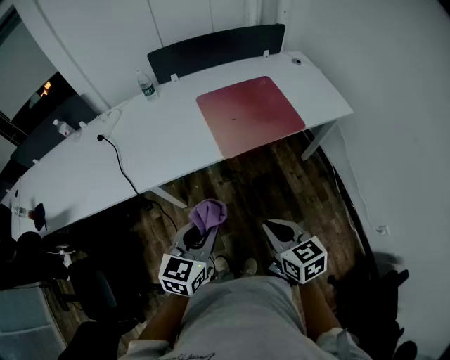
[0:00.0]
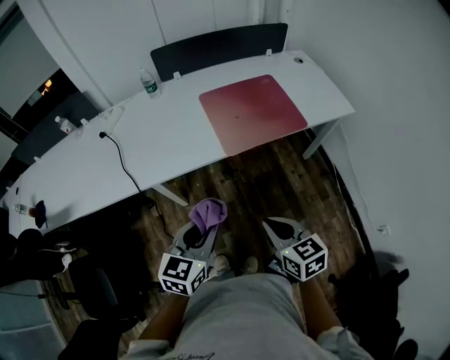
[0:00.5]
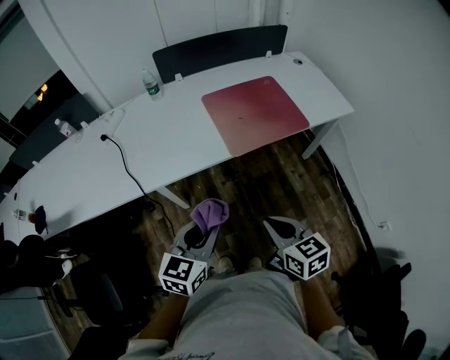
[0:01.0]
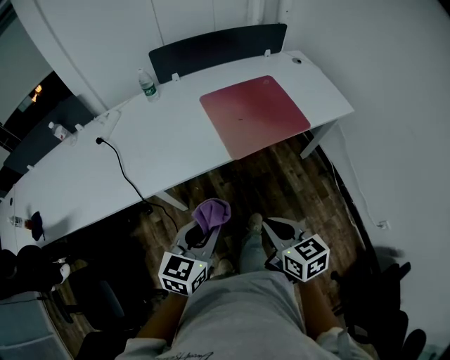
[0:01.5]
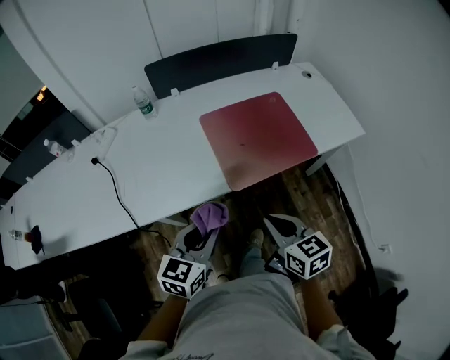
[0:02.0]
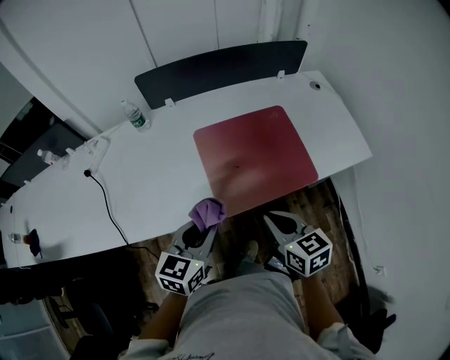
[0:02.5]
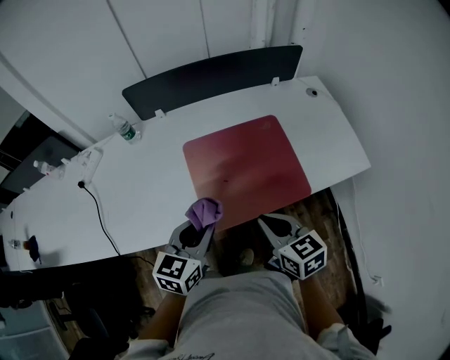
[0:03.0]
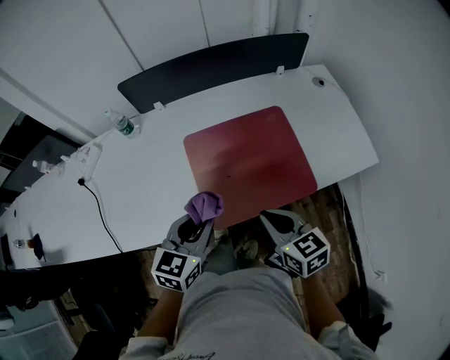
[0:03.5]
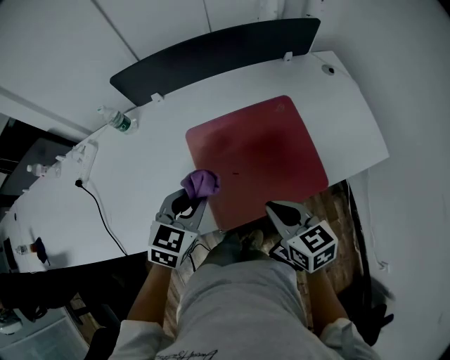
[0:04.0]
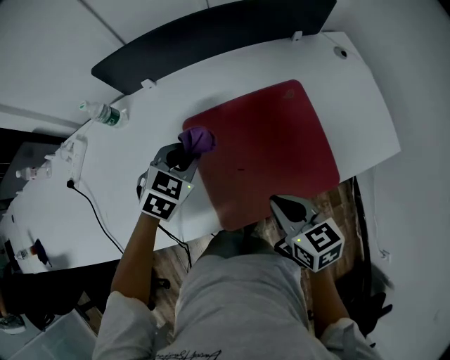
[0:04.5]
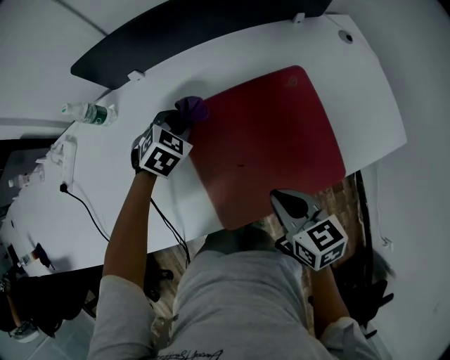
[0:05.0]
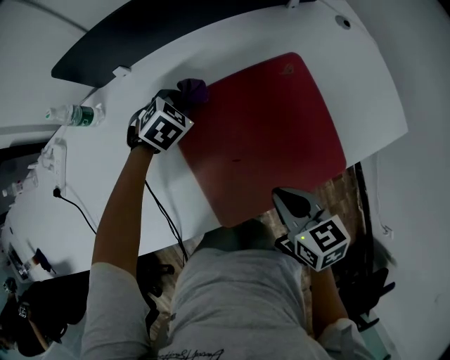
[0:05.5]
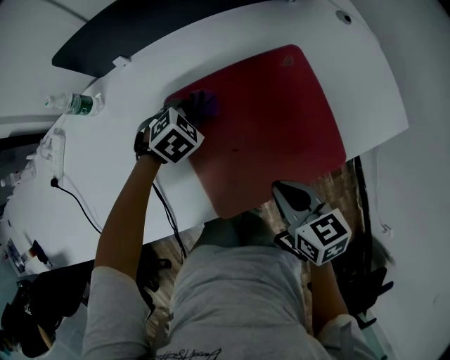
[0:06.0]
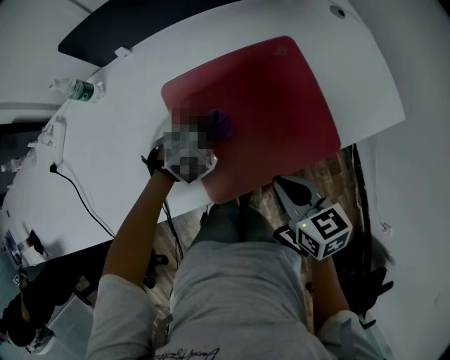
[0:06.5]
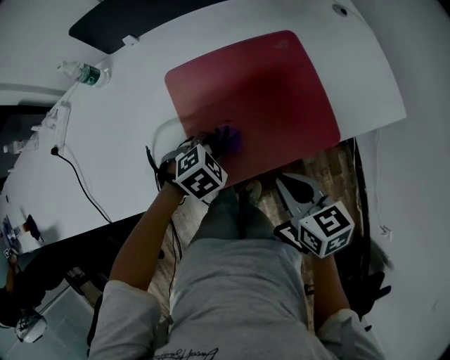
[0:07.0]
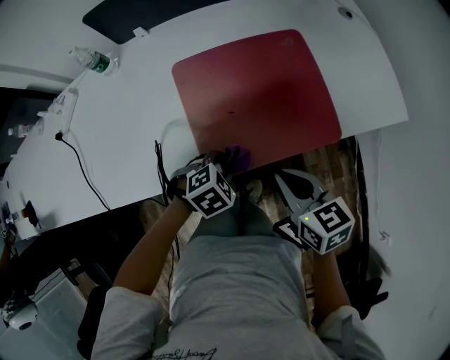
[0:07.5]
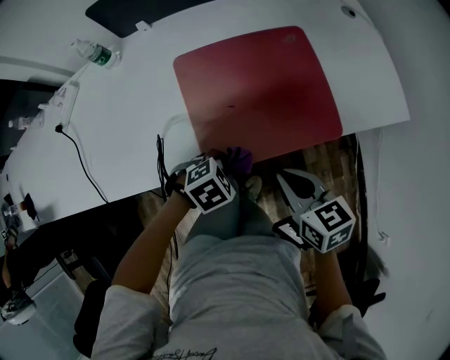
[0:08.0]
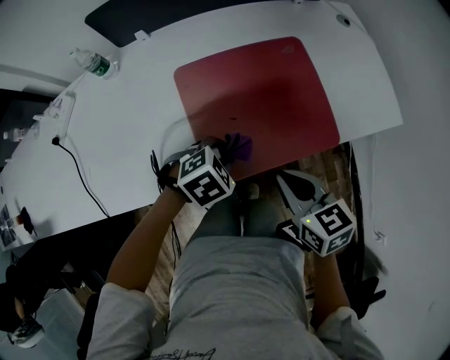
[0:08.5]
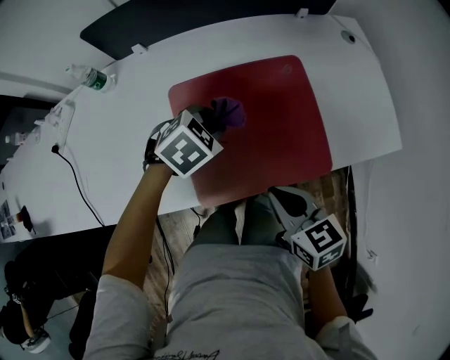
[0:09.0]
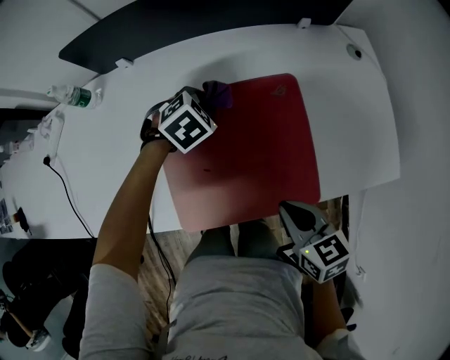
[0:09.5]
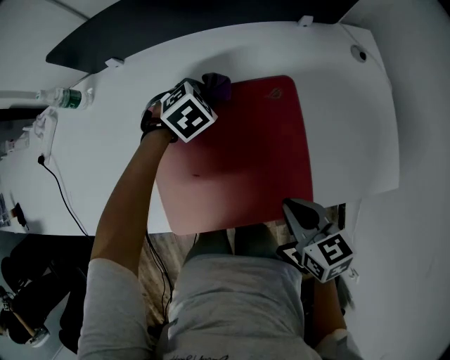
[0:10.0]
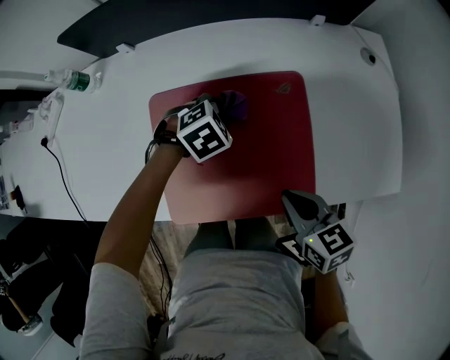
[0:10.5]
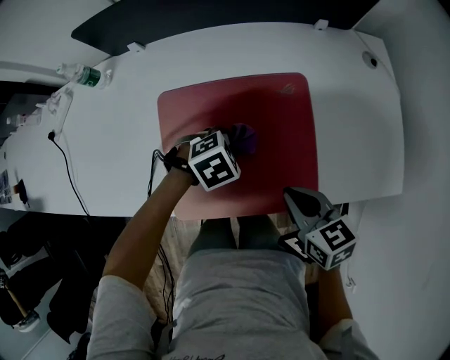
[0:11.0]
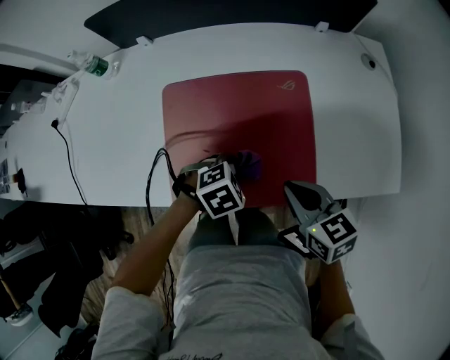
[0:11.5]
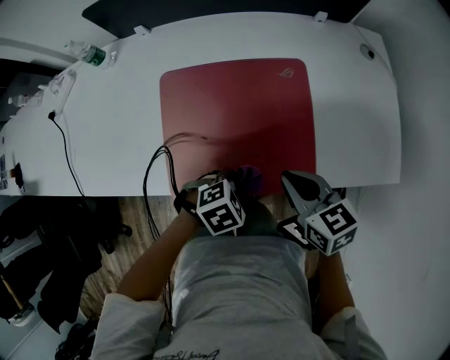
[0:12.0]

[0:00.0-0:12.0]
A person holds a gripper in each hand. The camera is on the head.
0:00.0 to 0:02.0: The two grippers go some 15 cm forward.
0:02.0 to 0:04.0: The grippers both shift forward by some 25 cm.
0:04.0 to 0:06.0: The right gripper goes approximately 5 cm downward. The left gripper goes about 25 cm forward and downward, and turns by some 40 degrees.
0:06.0 to 0:08.0: The left gripper travels backward and to the right by approximately 30 cm, while the right gripper heads backward, covering some 10 cm.
0:08.0 to 0:10.0: The left gripper moves approximately 10 cm upward and comes back; the right gripper moves roughly 20 cm.
0:10.0 to 0:12.0: The left gripper ends up approximately 35 cm from where it was.

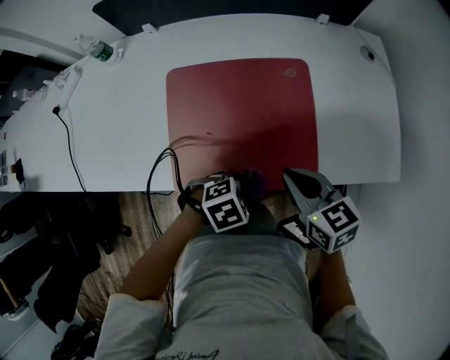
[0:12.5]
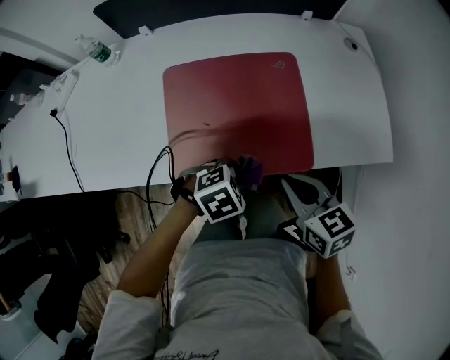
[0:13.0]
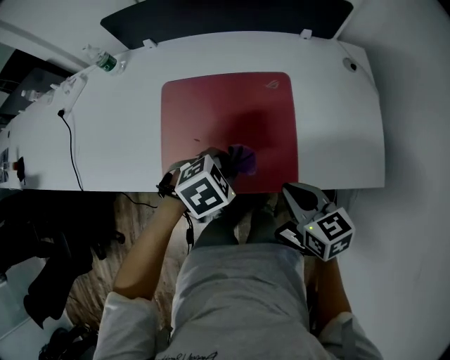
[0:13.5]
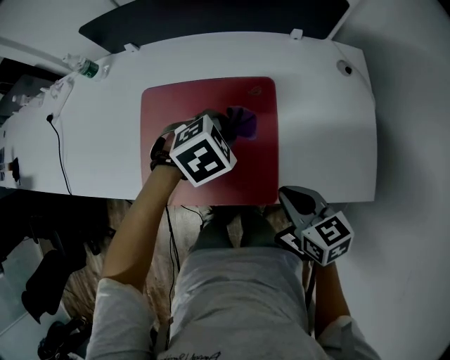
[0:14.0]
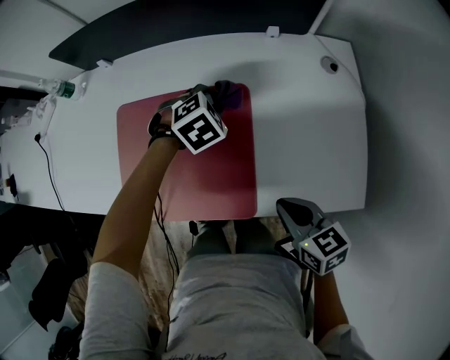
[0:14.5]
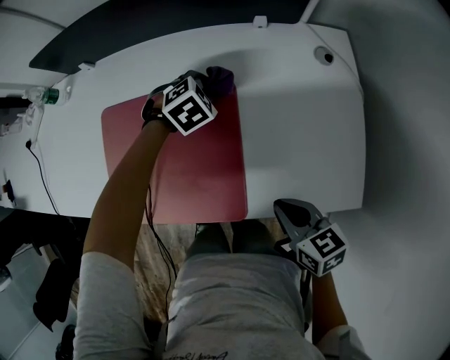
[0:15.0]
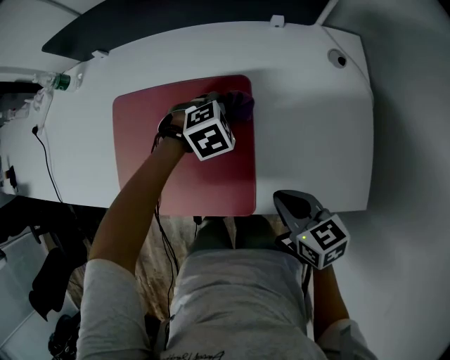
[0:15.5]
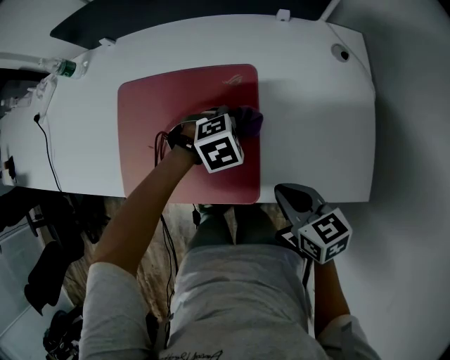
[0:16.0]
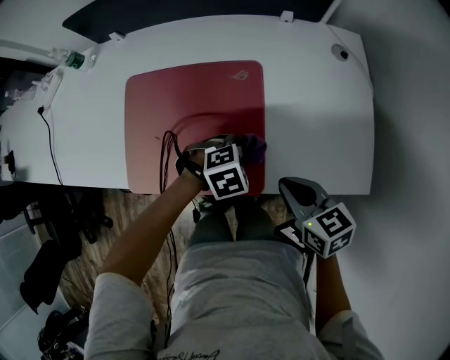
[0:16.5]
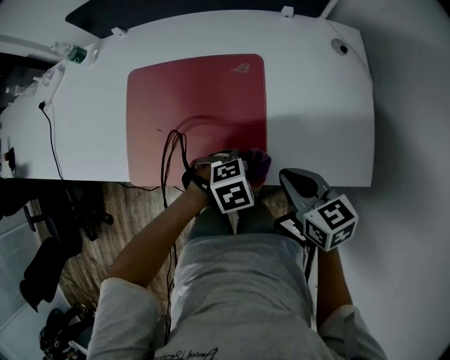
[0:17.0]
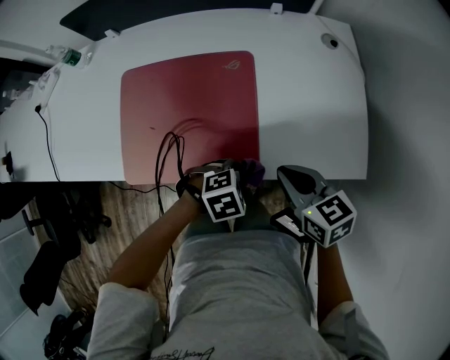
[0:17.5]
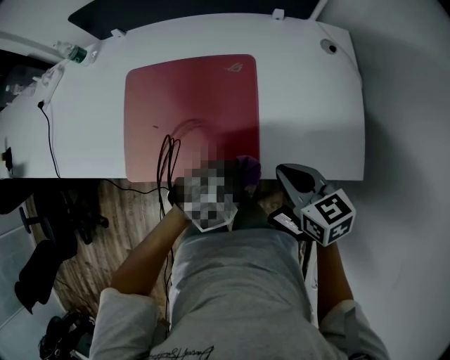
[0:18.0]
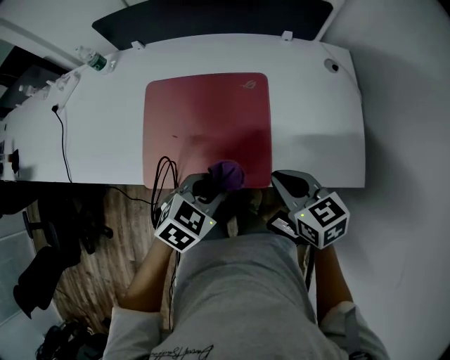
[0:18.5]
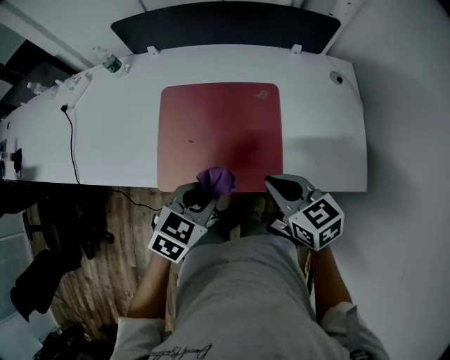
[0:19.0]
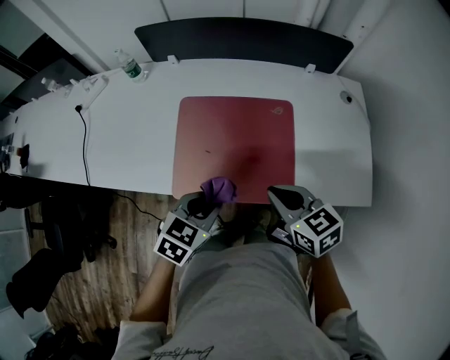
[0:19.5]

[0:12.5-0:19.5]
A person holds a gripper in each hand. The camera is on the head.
0:12.5 to 0:14.5: The right gripper changes place by about 20 cm; the left gripper moves some 35 cm, and changes its angle by about 30 degrees.
0:14.5 to 0:16.0: The left gripper heads backward and downward, covering about 10 cm.
0:16.0 to 0:17.5: The left gripper moves approximately 20 cm.
0:17.5 to 0:19.5: The left gripper changes place by approximately 25 cm, and rotates roughly 50 degrees, while the right gripper ends up approximately 20 cm from where it was.

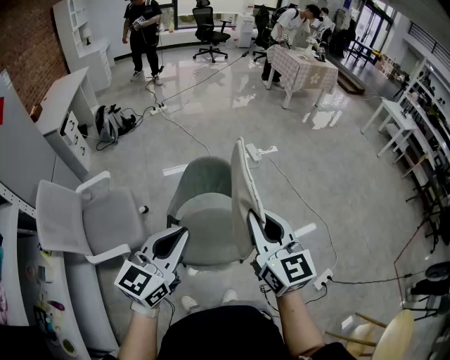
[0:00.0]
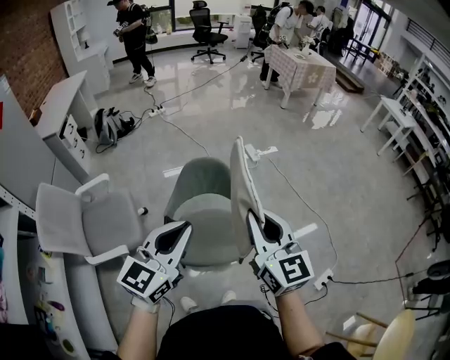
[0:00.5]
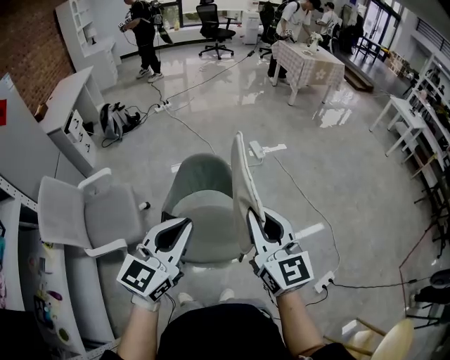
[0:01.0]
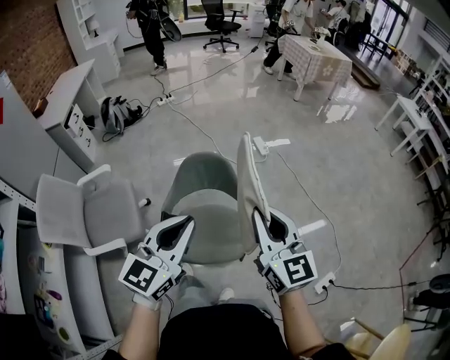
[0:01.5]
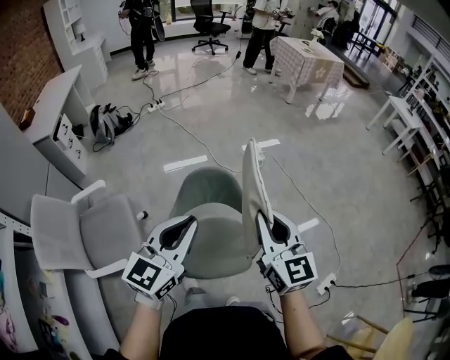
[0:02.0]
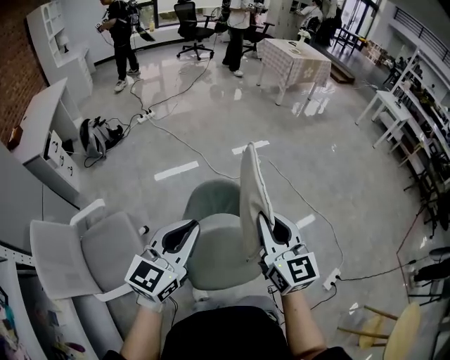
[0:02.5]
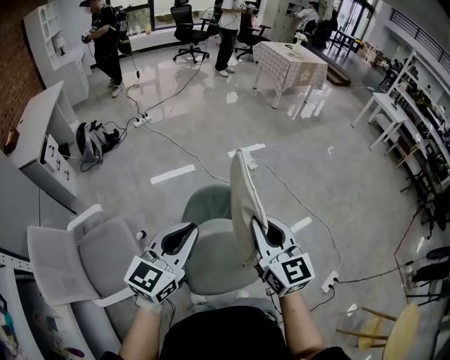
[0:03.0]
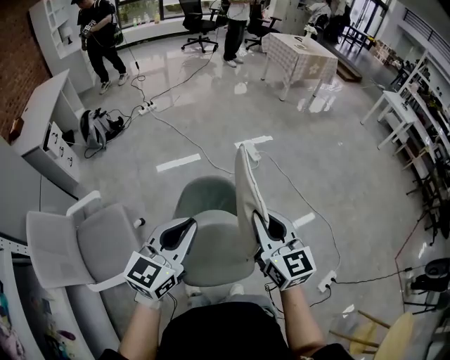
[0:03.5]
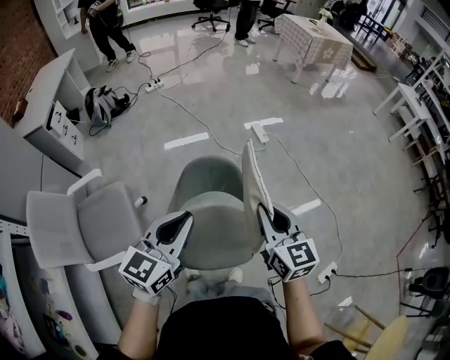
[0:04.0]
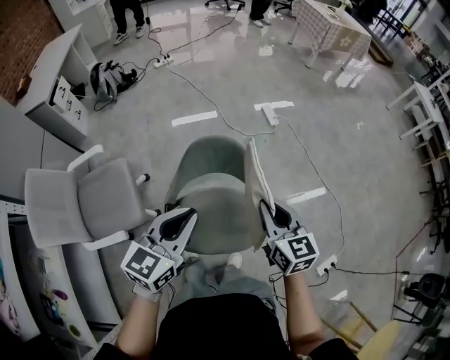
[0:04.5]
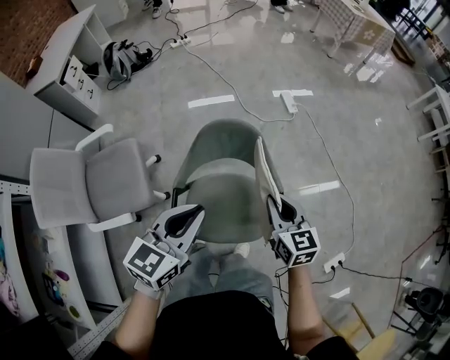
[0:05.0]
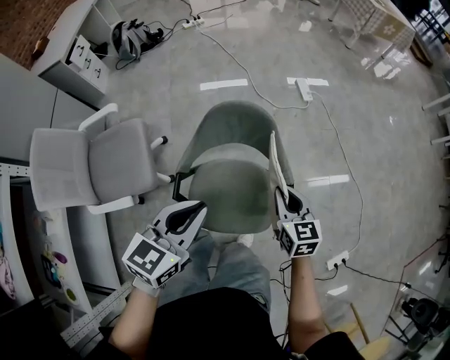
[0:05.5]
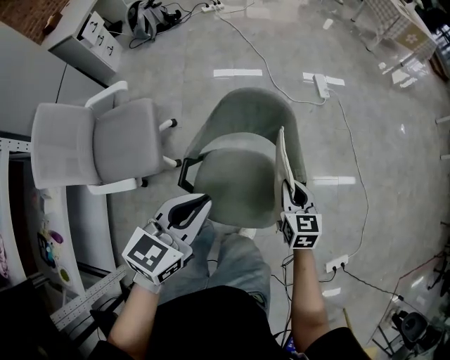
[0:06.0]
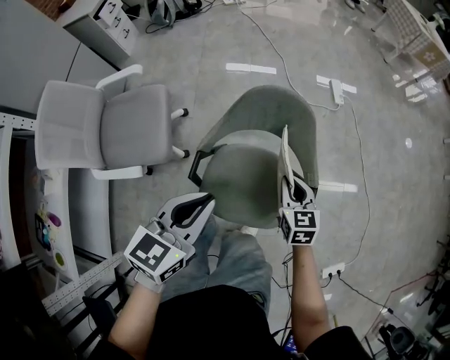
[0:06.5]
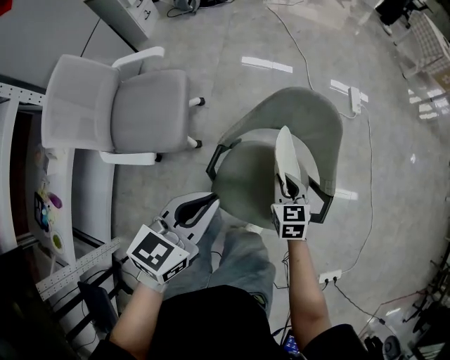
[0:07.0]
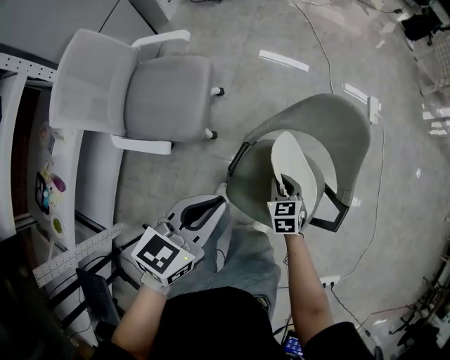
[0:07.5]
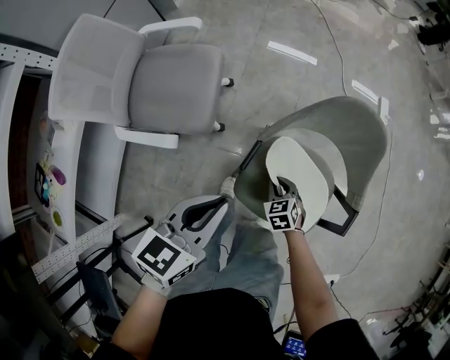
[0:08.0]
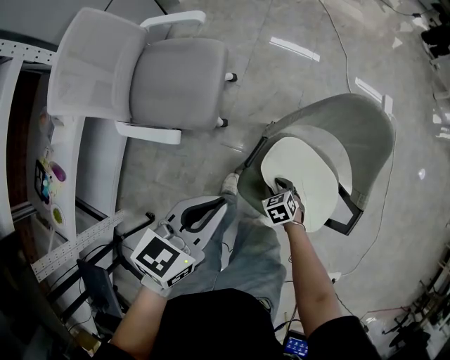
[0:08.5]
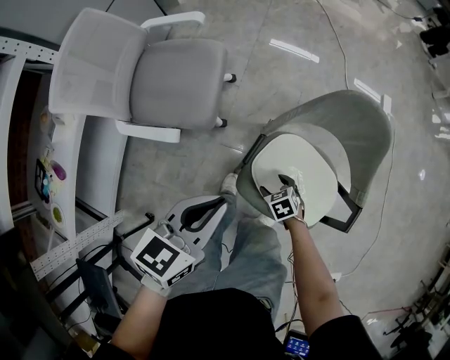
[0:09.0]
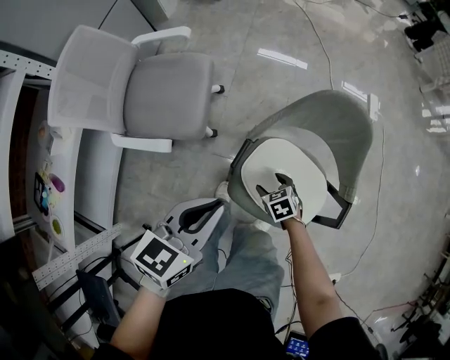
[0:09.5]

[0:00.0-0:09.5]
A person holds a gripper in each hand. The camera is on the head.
0:00.0 to 0:02.0: Both grippers move forward, roughly 10 cm.
0:02.0 to 0:04.0: The right gripper goes approximately 10 cm downward and forward; the left gripper is displaced downward by some 5 cm.
0:04.0 to 0:05.5: The left gripper goes approximately 10 cm downward. The right gripper travels downward by about 20 cm.
0:05.5 to 0:07.5: The right gripper moves to the left and downward, about 30 cm, and swivels roughly 30 degrees; the left gripper is displaced to the left and downward by about 15 cm, and rotates about 20 degrees.
0:07.5 to 0:09.5: The right gripper heads downward, covering approximately 5 cm, rotates approximately 20 degrees, and opens its fingers.
